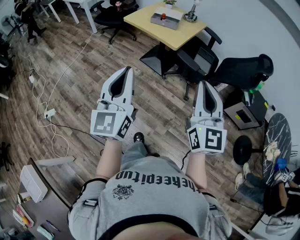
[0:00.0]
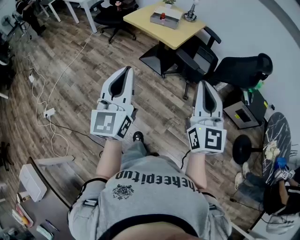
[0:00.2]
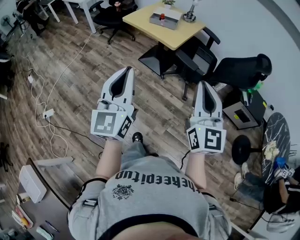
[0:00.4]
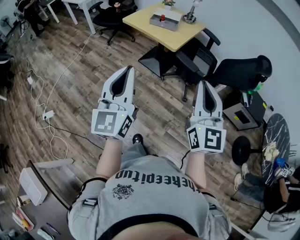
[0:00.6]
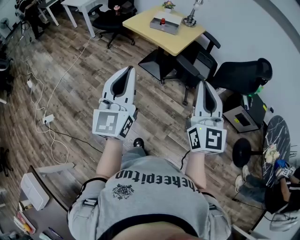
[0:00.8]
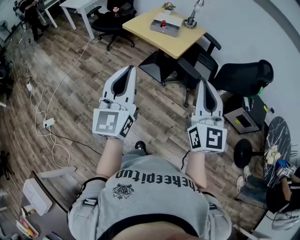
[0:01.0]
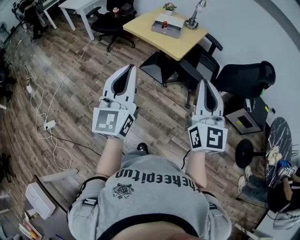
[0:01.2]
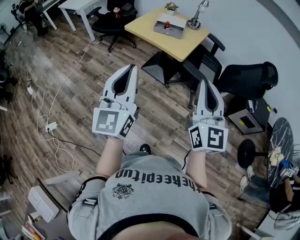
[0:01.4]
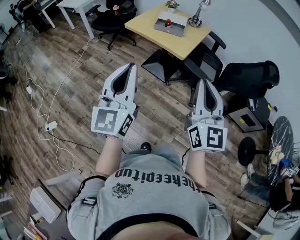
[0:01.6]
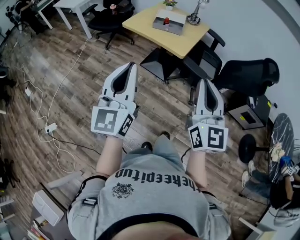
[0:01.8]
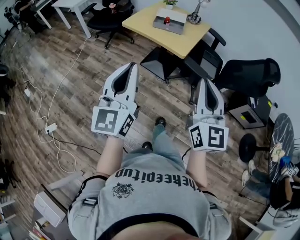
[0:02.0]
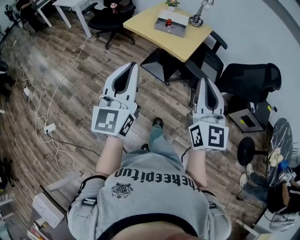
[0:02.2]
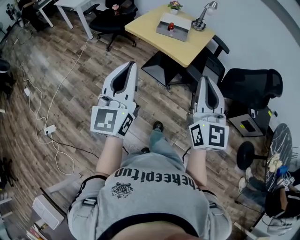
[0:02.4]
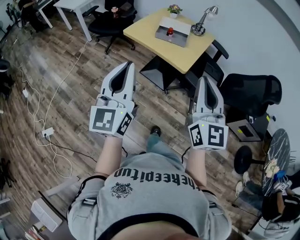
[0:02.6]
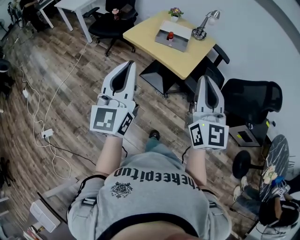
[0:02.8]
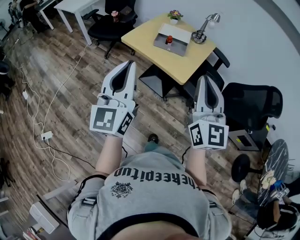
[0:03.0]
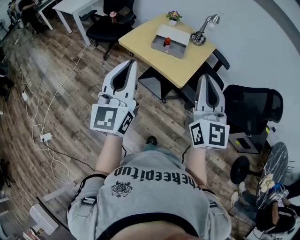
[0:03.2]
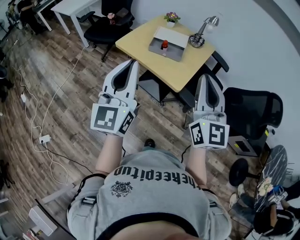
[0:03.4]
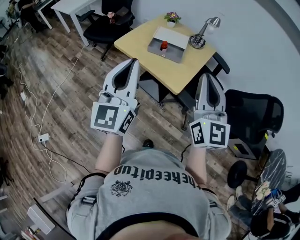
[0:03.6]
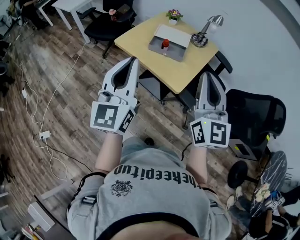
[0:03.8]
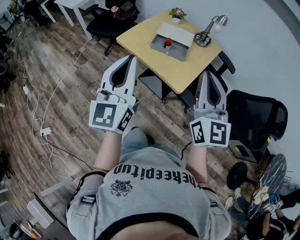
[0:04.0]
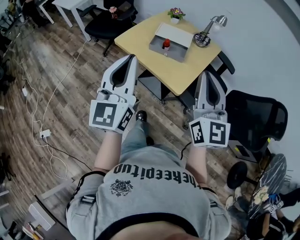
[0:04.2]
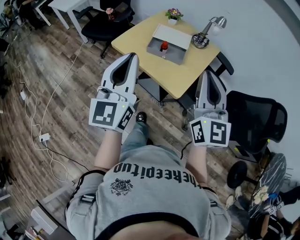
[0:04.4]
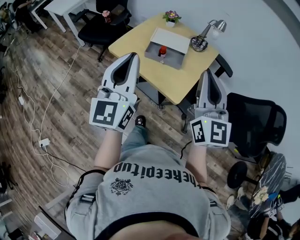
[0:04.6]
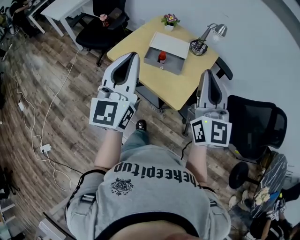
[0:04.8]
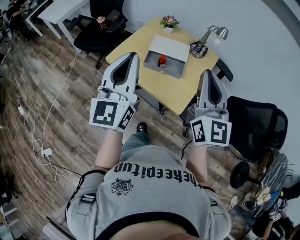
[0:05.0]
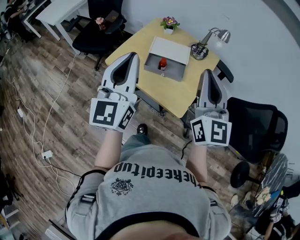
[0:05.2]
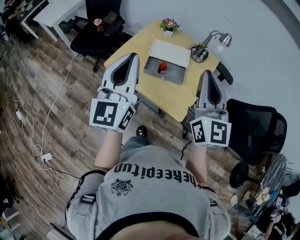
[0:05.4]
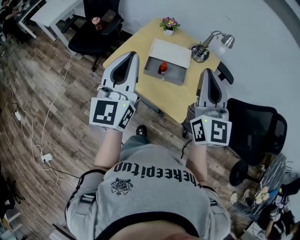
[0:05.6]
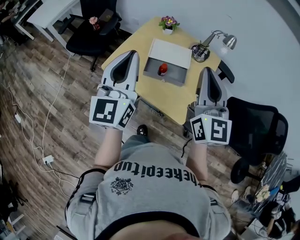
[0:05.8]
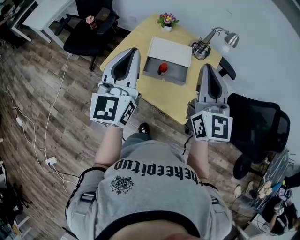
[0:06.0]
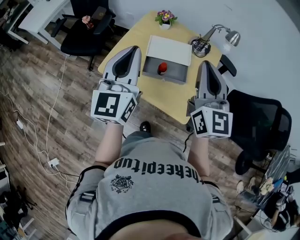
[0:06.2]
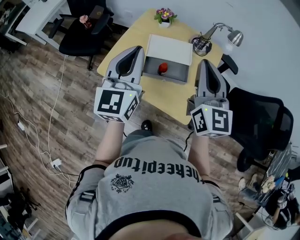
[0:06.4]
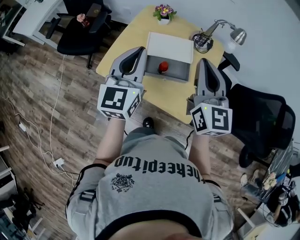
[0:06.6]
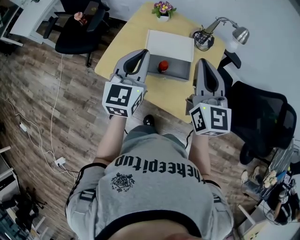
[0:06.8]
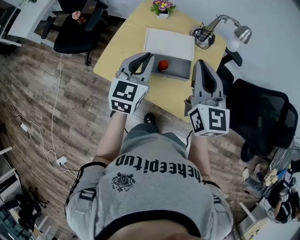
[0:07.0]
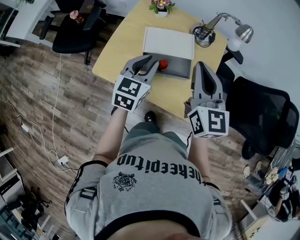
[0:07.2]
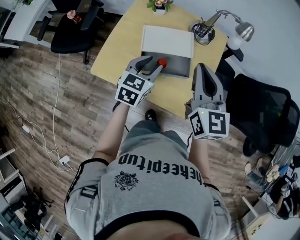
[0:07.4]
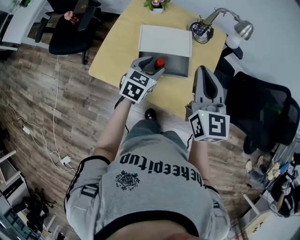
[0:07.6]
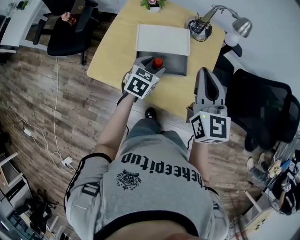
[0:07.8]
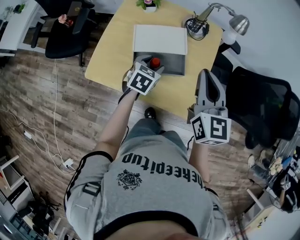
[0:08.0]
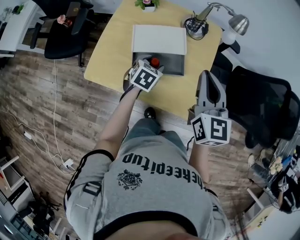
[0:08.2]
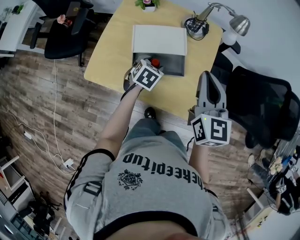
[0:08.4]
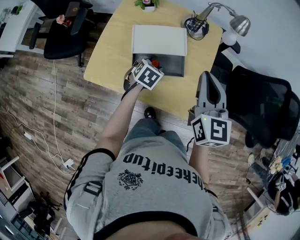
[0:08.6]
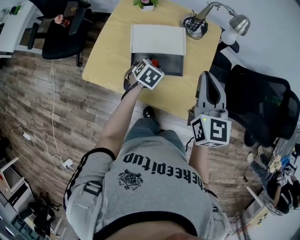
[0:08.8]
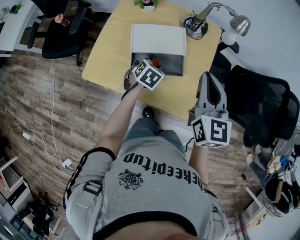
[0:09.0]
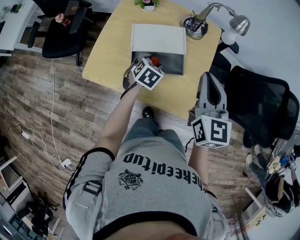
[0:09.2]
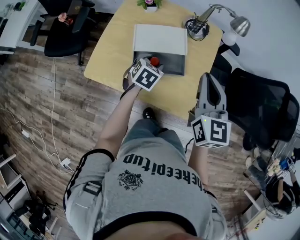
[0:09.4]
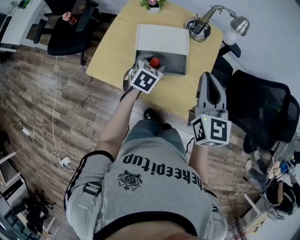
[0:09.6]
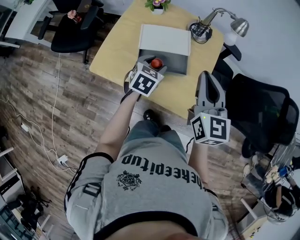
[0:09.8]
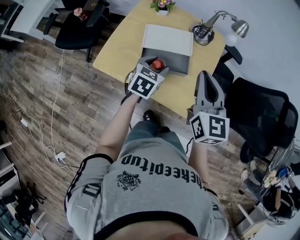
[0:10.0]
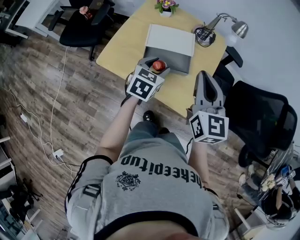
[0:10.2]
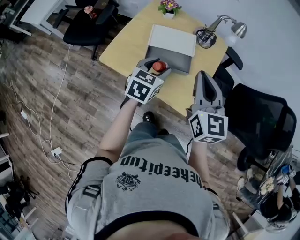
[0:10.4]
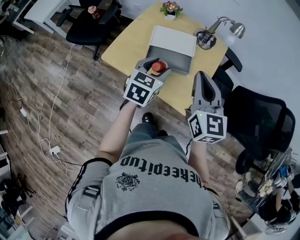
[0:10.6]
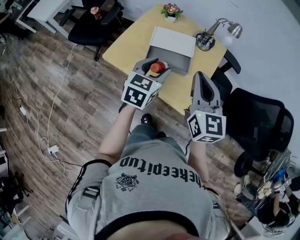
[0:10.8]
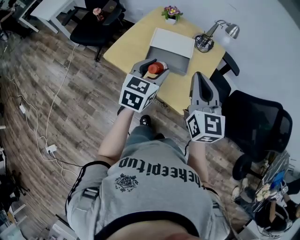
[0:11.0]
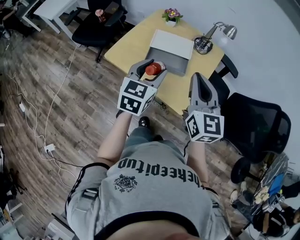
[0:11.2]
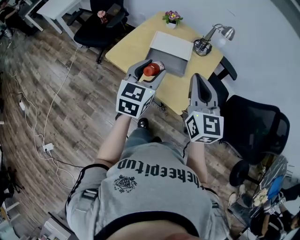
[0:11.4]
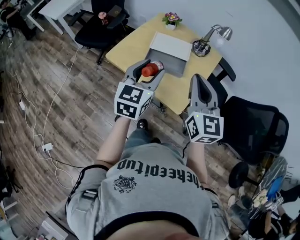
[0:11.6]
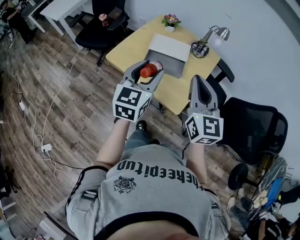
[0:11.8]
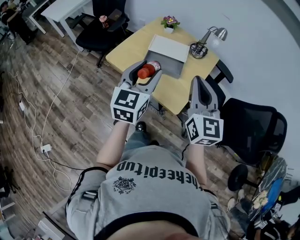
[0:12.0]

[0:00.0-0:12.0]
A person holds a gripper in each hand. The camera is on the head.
0:00.0 to 0:01.6: Both grippers travel together forward and to the left, approximately 15 cm.
0:01.6 to 0:03.0: Both grippers travel together forward, some 20 cm.
0:03.0 to 0:04.4: Both grippers move forward, approximately 20 cm.
0:04.4 to 0:06.0: The grippers both shift forward by approximately 25 cm.
0:06.0 to 0:07.6: The right gripper travels downward and forward by roughly 15 cm, while the left gripper heads downward and forward, covering roughly 30 cm, tilts its fingers about 50 degrees downward, and opens up.
0:07.6 to 0:09.0: The left gripper goes about 10 cm downward, and swivels approximately 20 degrees.
0:09.0 to 0:10.4: The left gripper goes approximately 20 cm upward and backward, and turns by roughly 30 degrees; the right gripper heads backward, covering about 10 cm.
0:10.4 to 0:12.0: The left gripper shifts roughly 20 cm upward and backward, and swivels roughly 30 degrees, while the right gripper heads backward and upward, covering roughly 10 cm.

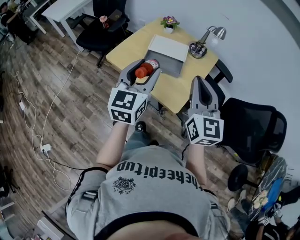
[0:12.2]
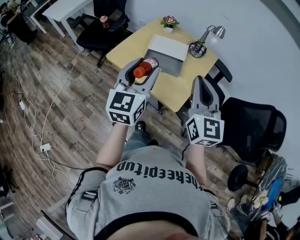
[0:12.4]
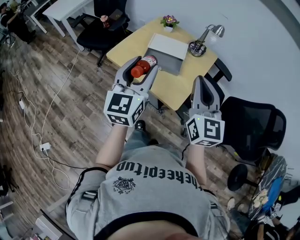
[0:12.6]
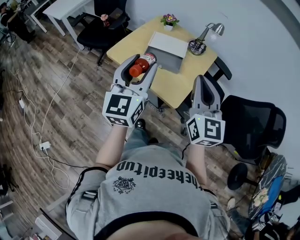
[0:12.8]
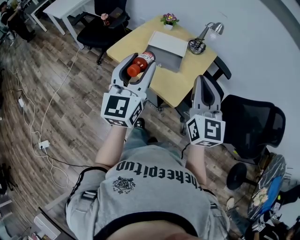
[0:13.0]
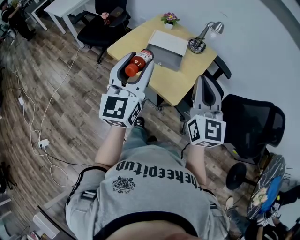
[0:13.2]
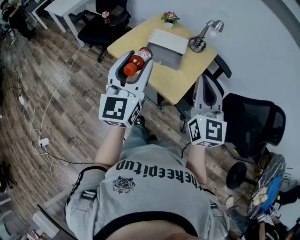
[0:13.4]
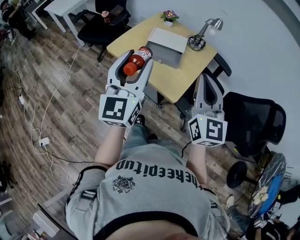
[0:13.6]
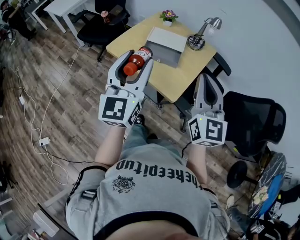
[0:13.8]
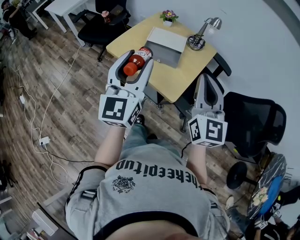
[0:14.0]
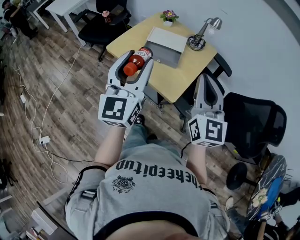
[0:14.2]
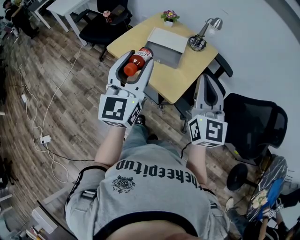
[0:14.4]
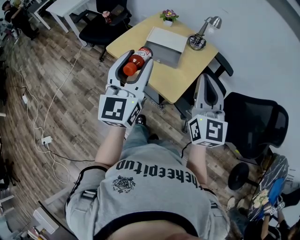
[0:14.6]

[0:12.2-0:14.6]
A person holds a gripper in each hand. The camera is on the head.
0:12.2 to 0:13.4: The right gripper moves backward, approximately 5 cm. Meanwhile the left gripper heads backward and upward, covering roughly 10 cm.
0:13.4 to 0:14.6: The grippers make only small movements.

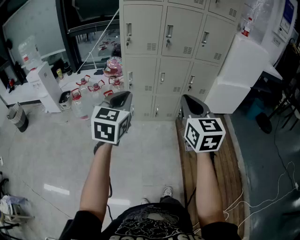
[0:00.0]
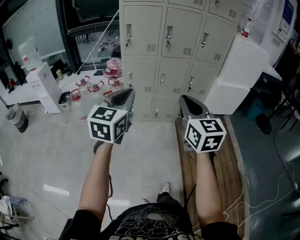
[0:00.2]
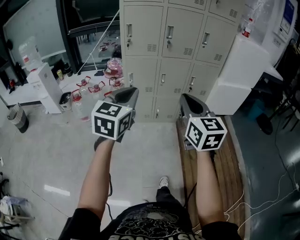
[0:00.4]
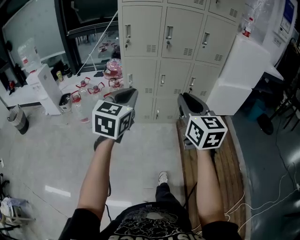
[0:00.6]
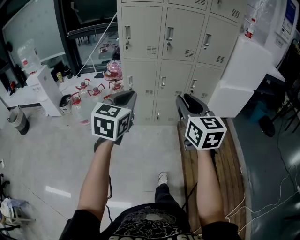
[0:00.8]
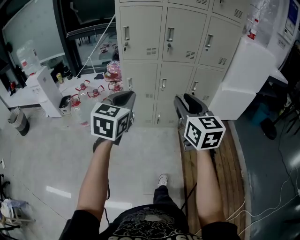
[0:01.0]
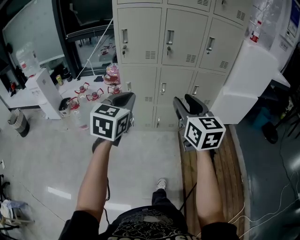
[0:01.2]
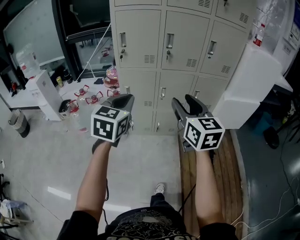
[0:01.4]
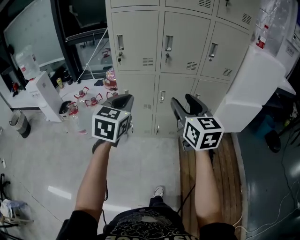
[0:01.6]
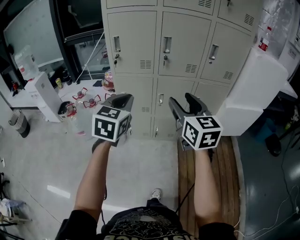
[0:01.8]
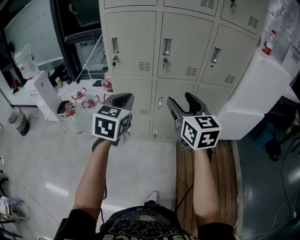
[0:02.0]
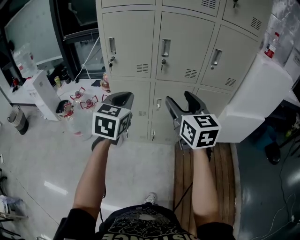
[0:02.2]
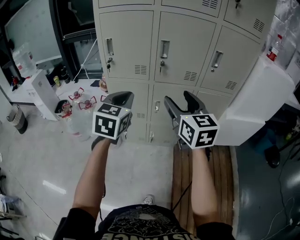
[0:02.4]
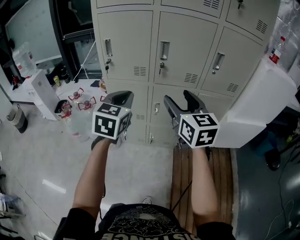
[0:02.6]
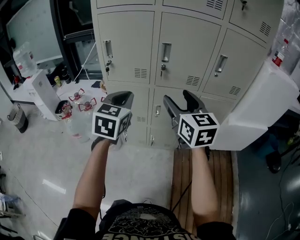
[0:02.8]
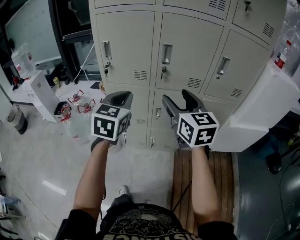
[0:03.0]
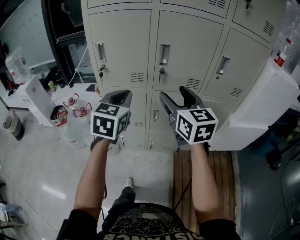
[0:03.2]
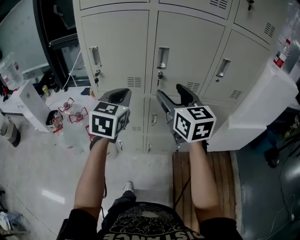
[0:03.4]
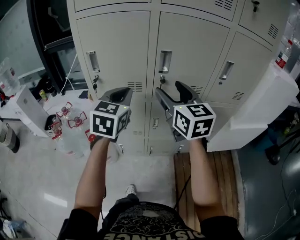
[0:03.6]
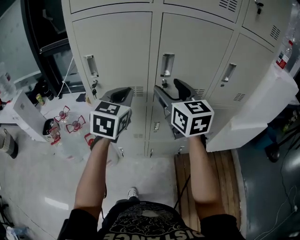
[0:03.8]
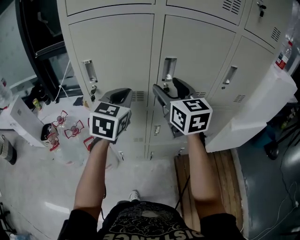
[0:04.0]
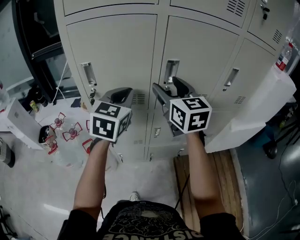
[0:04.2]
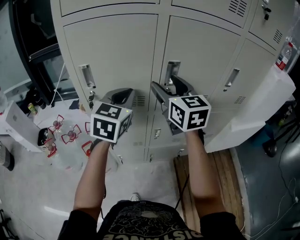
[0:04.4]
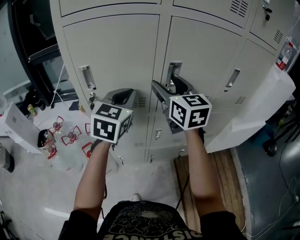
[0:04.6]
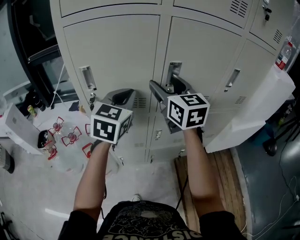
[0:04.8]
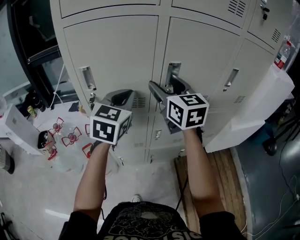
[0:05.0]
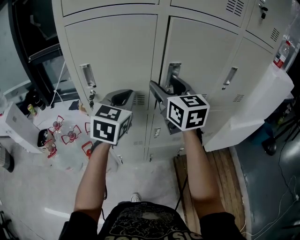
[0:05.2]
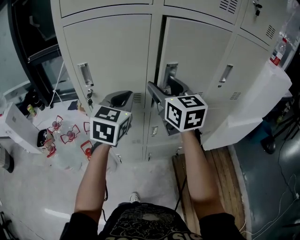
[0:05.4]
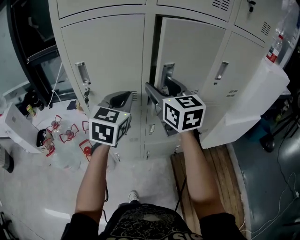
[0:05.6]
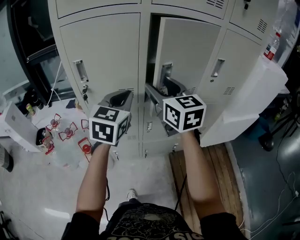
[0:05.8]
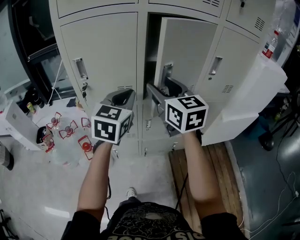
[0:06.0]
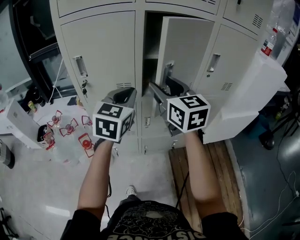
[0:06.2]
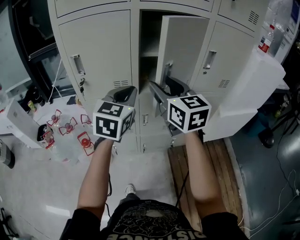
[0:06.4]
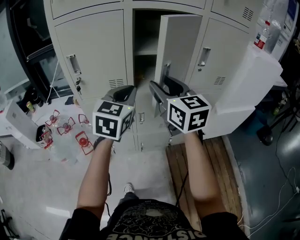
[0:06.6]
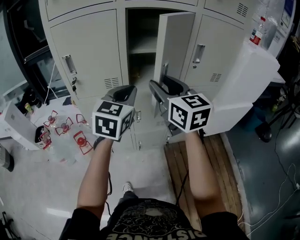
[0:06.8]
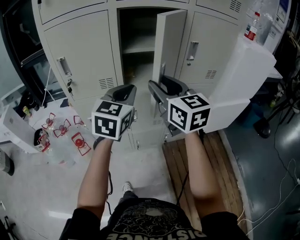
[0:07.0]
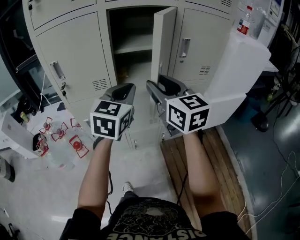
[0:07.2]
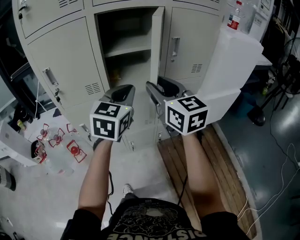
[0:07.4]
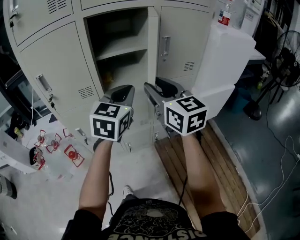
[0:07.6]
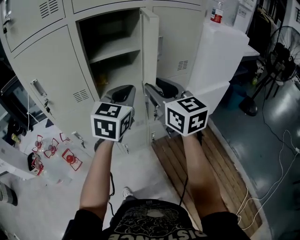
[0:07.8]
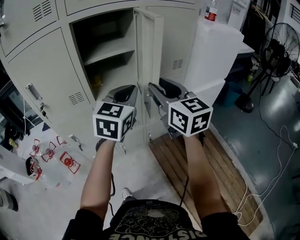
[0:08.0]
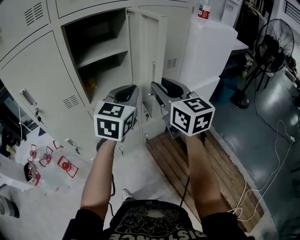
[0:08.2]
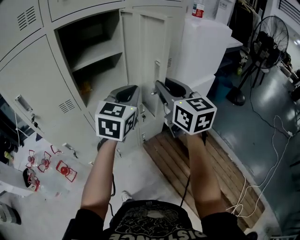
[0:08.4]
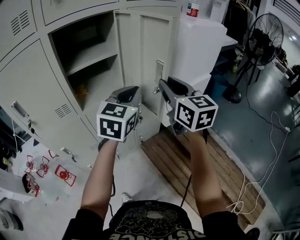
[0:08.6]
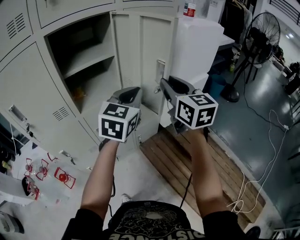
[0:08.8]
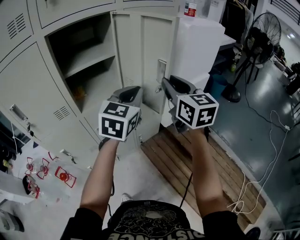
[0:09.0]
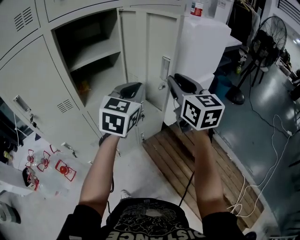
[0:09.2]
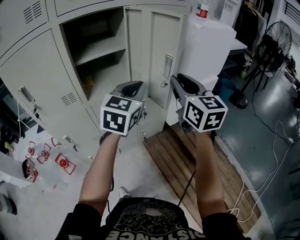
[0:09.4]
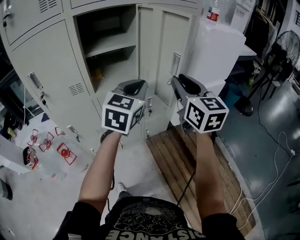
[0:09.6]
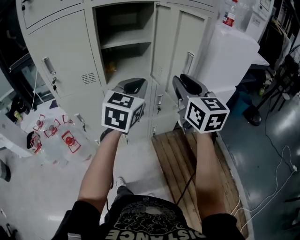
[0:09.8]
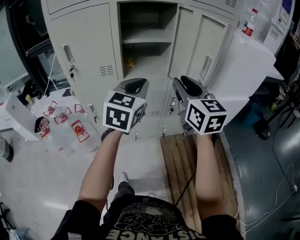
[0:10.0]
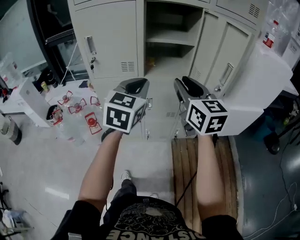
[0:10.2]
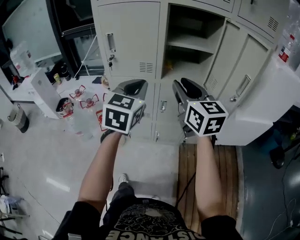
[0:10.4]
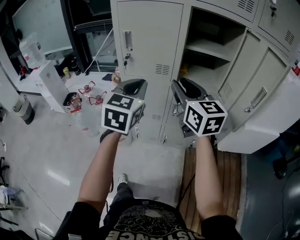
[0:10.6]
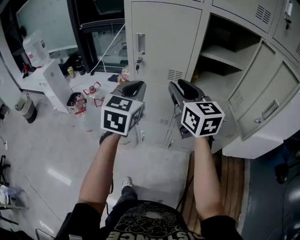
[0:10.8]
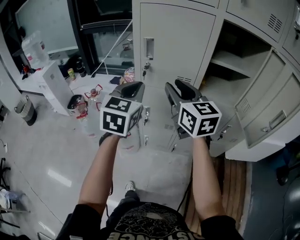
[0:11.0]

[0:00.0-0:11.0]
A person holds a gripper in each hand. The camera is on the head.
0:00.0 to 0:01.6: Both grippers travel together forward, some 20 cm. The right gripper opens up.
0:01.6 to 0:03.2: The grippers both shift forward by some 20 cm.
0:03.2 to 0:04.8: The left gripper shifts roughly 15 cm forward; the right gripper travels forward and to the left by about 20 cm.
0:04.8 to 0:06.2: The two grippers go roughly 10 cm backward and to the right.
0:06.2 to 0:07.8: The right gripper travels to the right and backward by about 20 cm. Meanwhile the left gripper travels to the right by approximately 20 cm.
0:07.8 to 0:09.4: The left gripper moves to the right, approximately 10 cm; the right gripper is displaced to the right by about 10 cm.
0:09.4 to 0:11.0: Both grippers are carried roughly 40 cm. The right gripper turns by roughly 40 degrees. Meanwhile the left gripper changes its angle by approximately 40 degrees.
